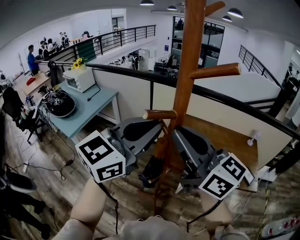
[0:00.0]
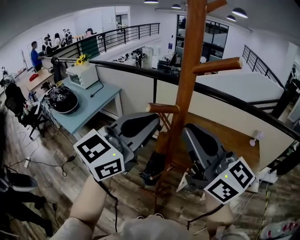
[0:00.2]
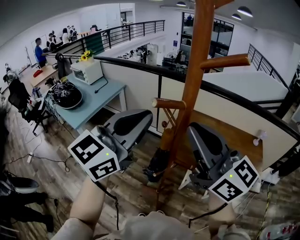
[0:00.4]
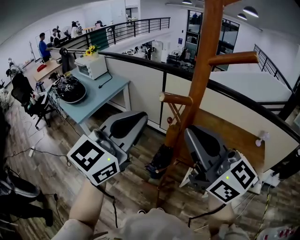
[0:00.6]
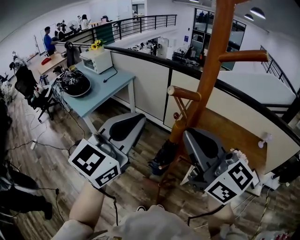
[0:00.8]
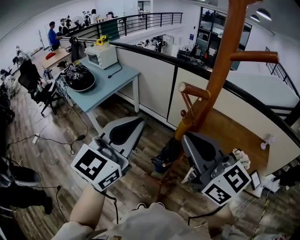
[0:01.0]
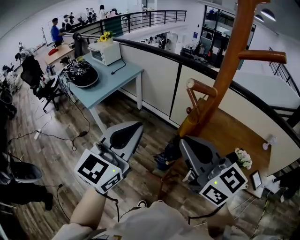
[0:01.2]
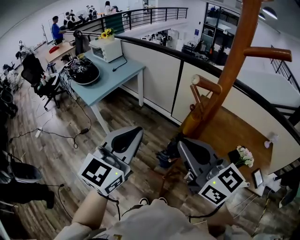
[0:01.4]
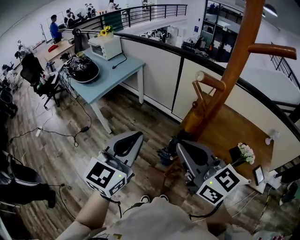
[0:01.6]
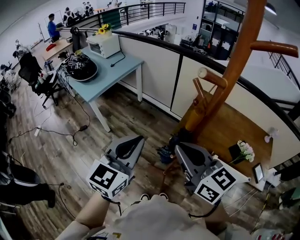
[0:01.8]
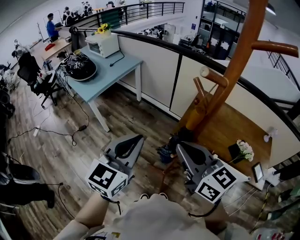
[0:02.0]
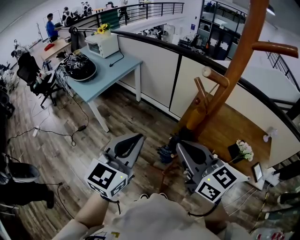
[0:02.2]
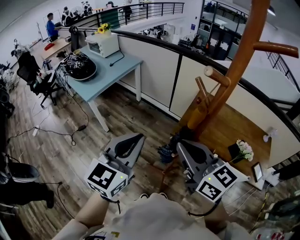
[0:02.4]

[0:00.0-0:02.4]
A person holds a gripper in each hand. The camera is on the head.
0.0 to 1.2 s: The left gripper travels to the left and downward by about 15 cm, and swivels roughly 30 degrees, while the right gripper travels downward and to the left by some 10 cm.
1.2 to 2.4 s: Both grippers travel together downward, some 10 cm.

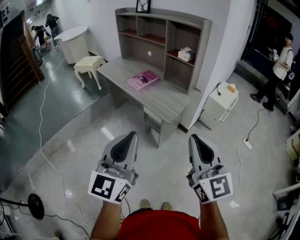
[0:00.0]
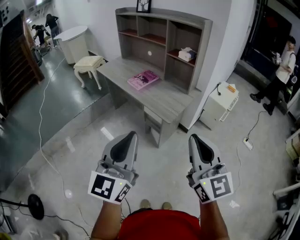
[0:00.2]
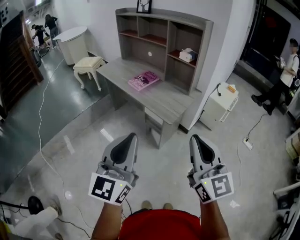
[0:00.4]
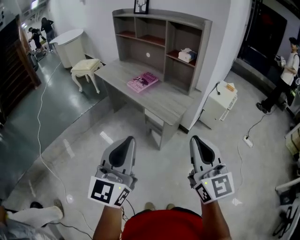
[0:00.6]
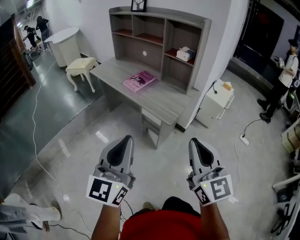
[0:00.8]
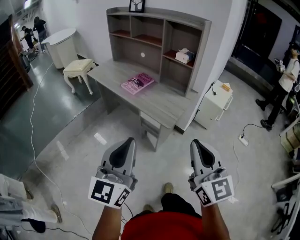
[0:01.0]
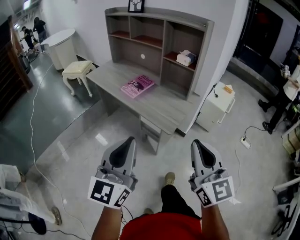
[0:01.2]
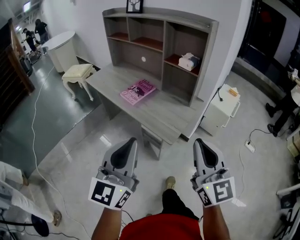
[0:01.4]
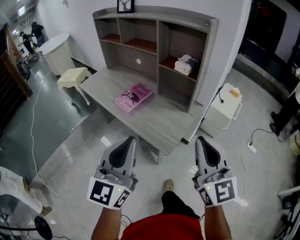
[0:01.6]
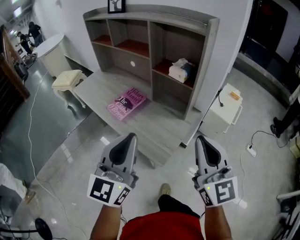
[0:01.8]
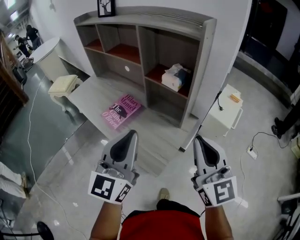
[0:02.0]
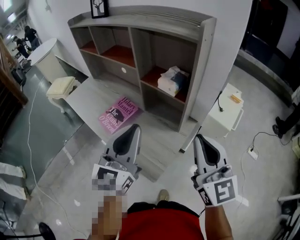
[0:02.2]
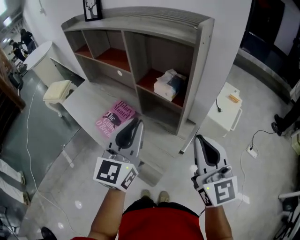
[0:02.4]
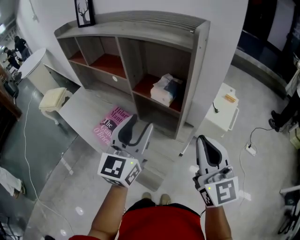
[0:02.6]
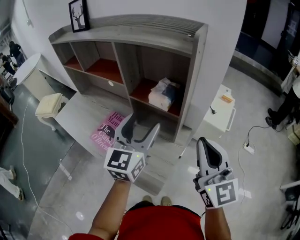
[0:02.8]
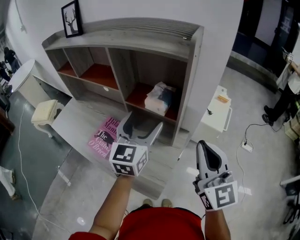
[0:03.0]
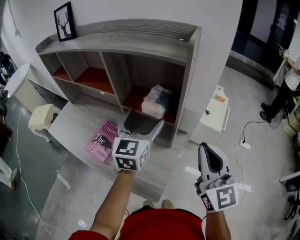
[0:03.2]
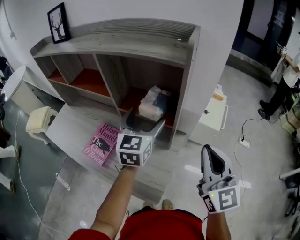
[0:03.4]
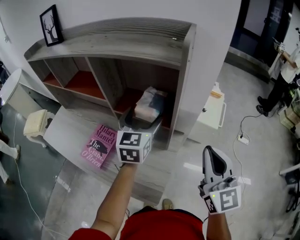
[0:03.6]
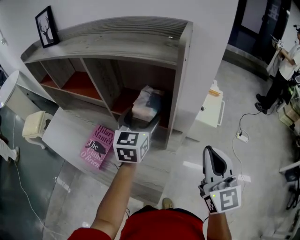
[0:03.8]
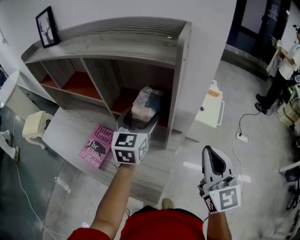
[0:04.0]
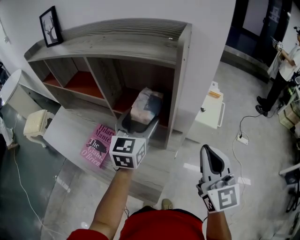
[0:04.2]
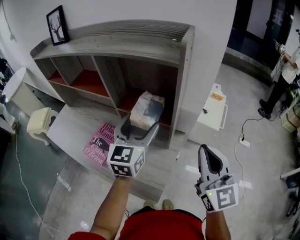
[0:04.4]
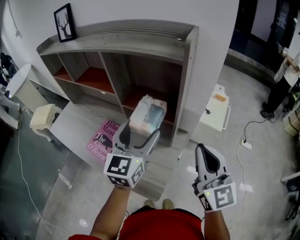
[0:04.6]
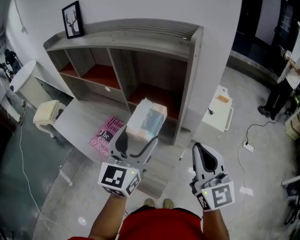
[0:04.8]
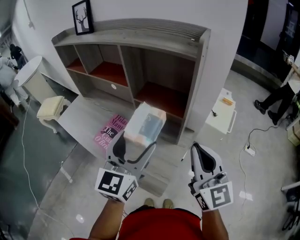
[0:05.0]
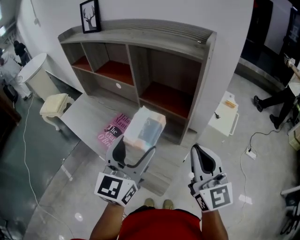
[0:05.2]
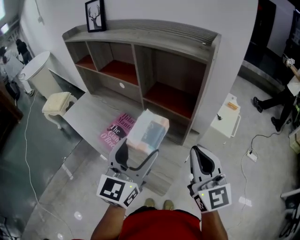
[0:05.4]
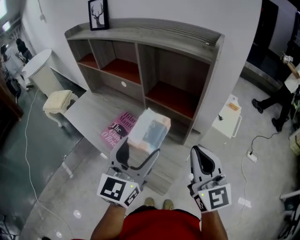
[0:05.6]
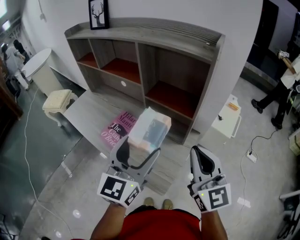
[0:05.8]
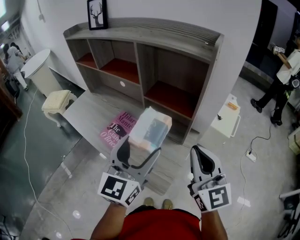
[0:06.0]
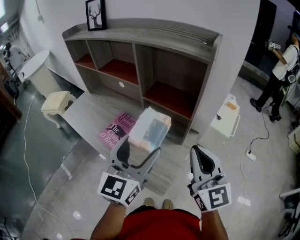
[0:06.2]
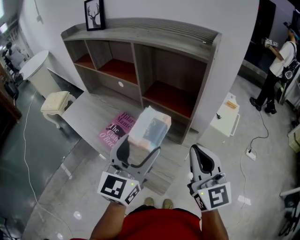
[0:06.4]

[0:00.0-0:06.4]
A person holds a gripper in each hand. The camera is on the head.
0.0 to 1.6 s: Both grippers move forward, about 25 cm.
1.6 to 3.2 s: The right gripper goes roughly 25 cm forward. Meanwhile the left gripper shifts roughly 40 cm forward, and opens.
3.2 to 4.8 s: The left gripper heads backward, covering approximately 10 cm.
4.8 to 6.4 s: The left gripper is displaced backward by about 5 cm, while the right gripper is displaced to the left by approximately 5 cm.

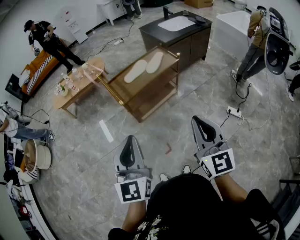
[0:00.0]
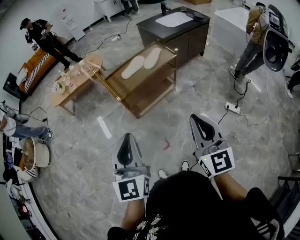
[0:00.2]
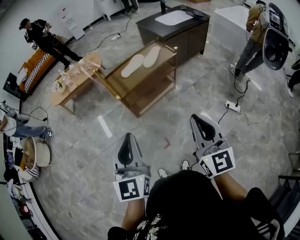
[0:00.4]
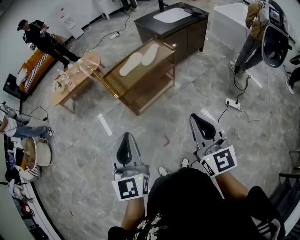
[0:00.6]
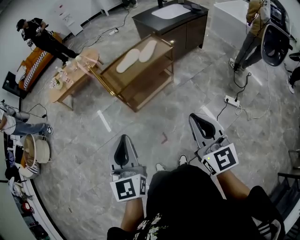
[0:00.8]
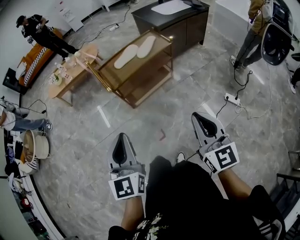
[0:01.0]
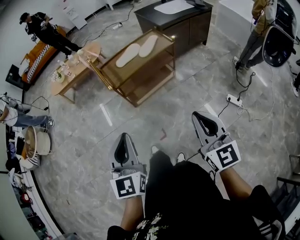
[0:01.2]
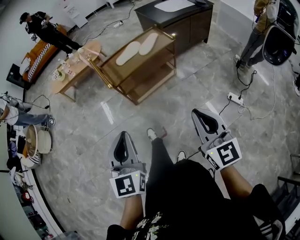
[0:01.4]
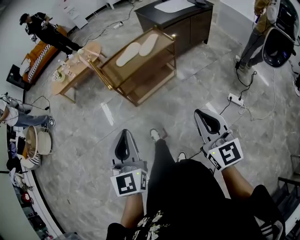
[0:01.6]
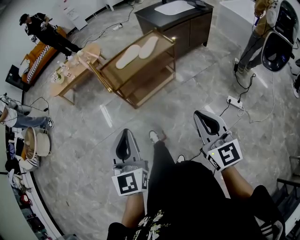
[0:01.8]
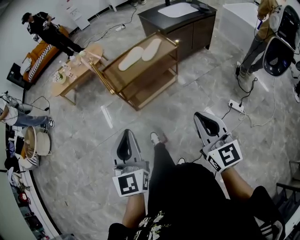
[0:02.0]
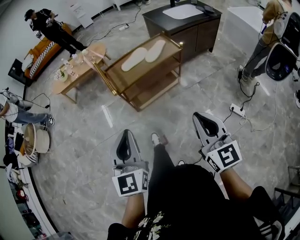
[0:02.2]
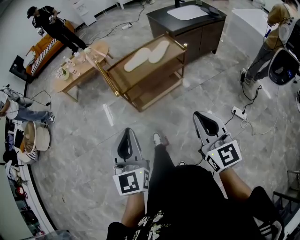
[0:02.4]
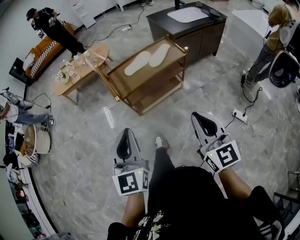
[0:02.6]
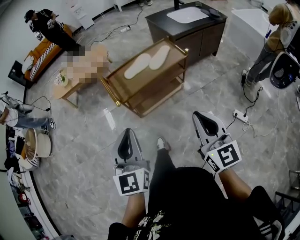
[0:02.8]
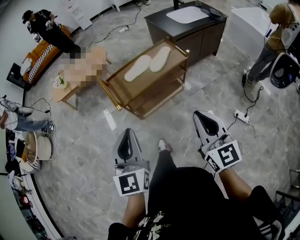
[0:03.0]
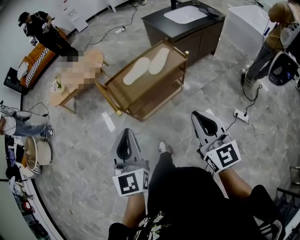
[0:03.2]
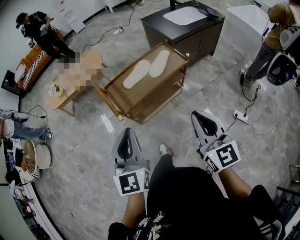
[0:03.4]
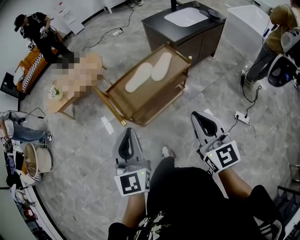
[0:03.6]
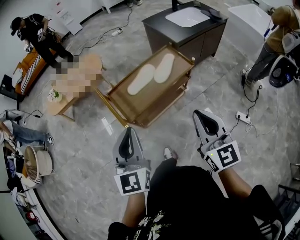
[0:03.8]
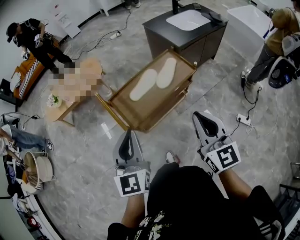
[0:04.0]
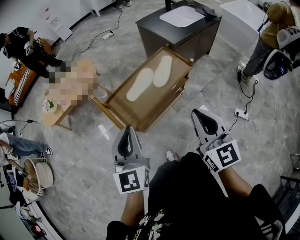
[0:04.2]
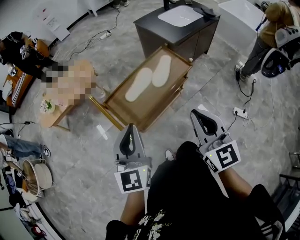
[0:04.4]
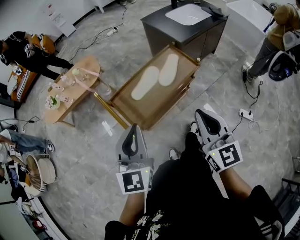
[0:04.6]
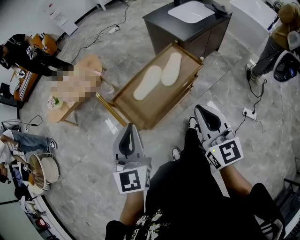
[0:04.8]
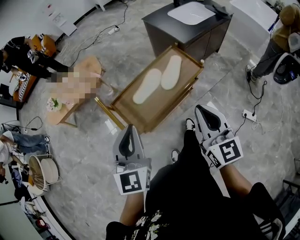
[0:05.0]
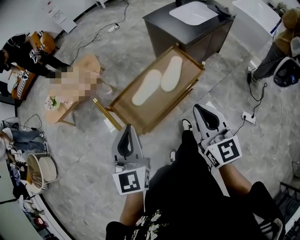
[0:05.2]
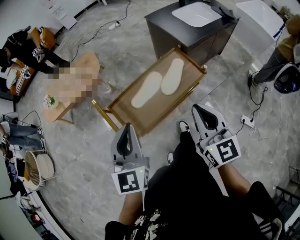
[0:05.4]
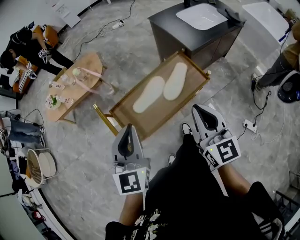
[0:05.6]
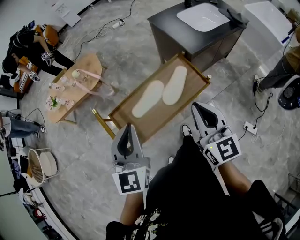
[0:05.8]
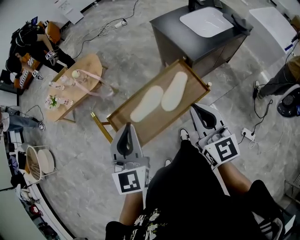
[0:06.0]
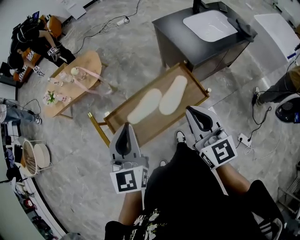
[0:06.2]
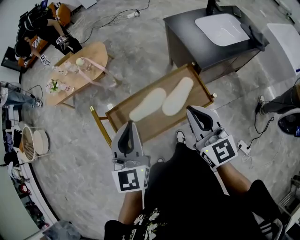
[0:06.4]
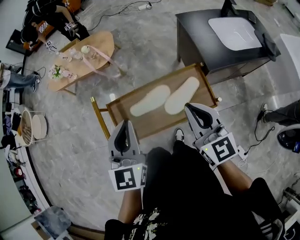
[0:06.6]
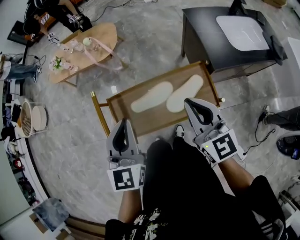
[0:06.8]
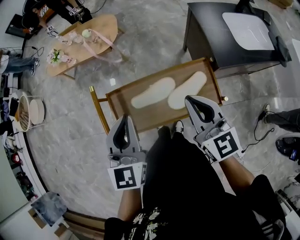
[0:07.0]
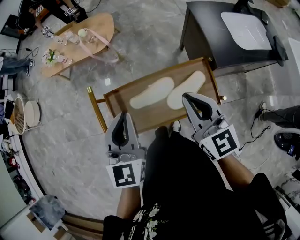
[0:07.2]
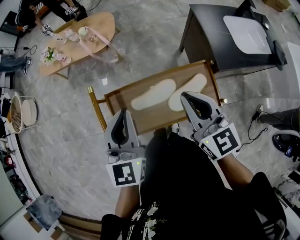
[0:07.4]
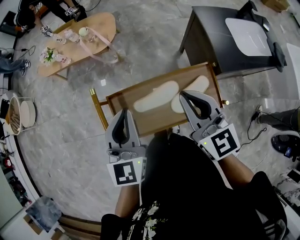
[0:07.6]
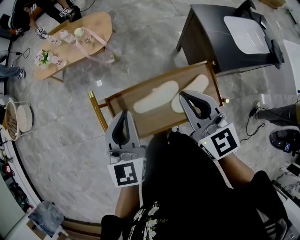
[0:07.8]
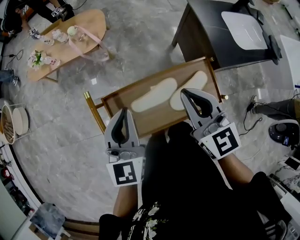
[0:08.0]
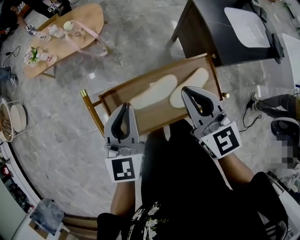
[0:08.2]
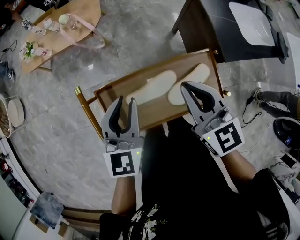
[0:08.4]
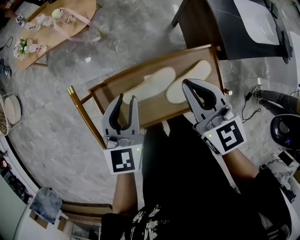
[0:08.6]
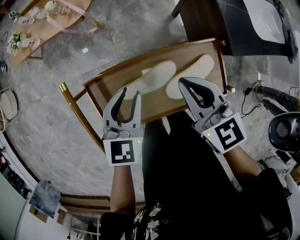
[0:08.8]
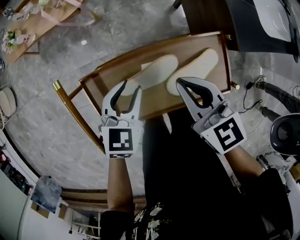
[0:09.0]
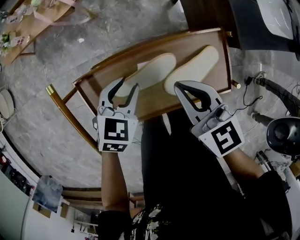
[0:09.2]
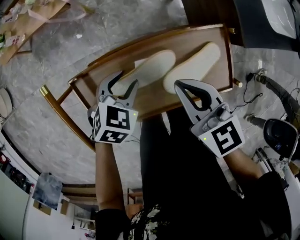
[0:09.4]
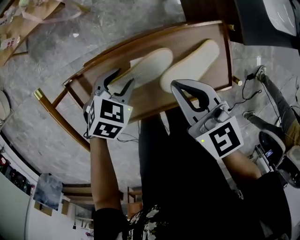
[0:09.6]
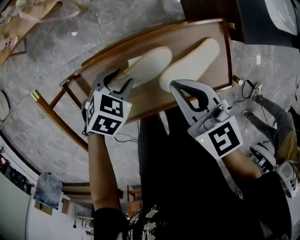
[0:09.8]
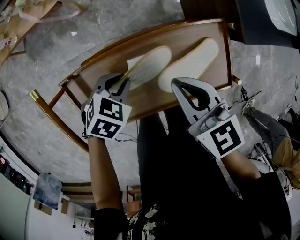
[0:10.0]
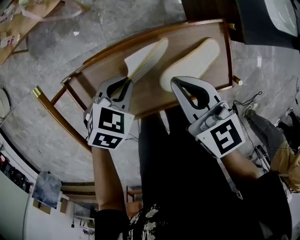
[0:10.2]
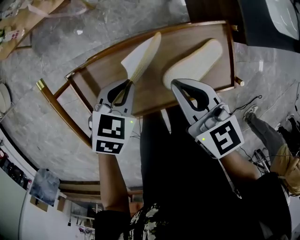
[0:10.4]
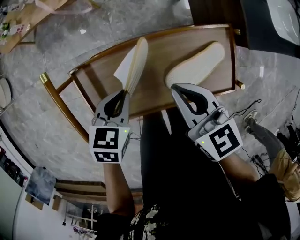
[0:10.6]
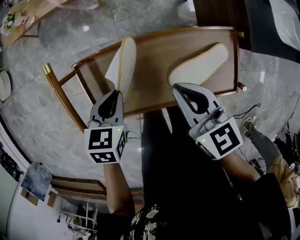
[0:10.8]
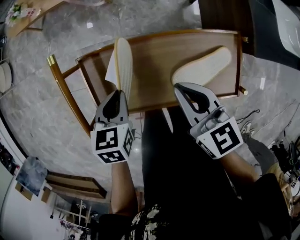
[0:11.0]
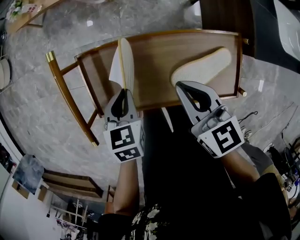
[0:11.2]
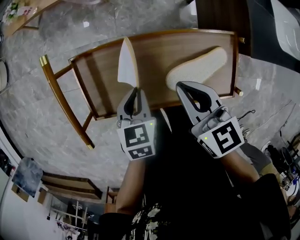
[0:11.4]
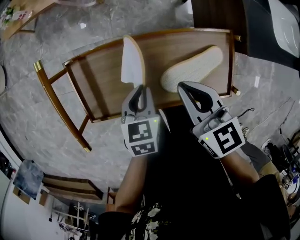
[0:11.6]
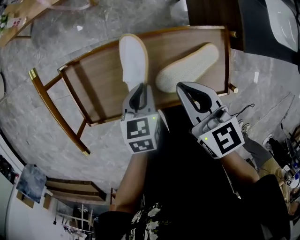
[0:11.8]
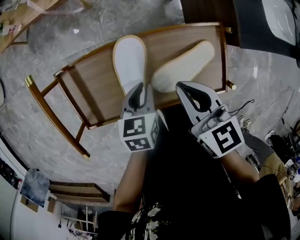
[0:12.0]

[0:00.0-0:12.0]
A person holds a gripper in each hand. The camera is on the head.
0.0 to 1.6 s: The left gripper shifts some 10 cm downward and to the right, while the right gripper heads to the right and downward, covering approximately 10 cm.
1.6 to 3.0 s: The two grippers go roughly 15 cm forward.
3.0 to 4.4 s: The right gripper is displaced forward and to the left by approximately 20 cm. Meanwhile the left gripper travels forward by some 20 cm.
4.4 to 6.0 s: The two grippers go roughly 20 cm forward.
6.0 to 7.6 s: The left gripper goes some 10 cm forward; the right gripper travels forward and to the left by roughly 15 cm, and rotates some 30 degrees.
7.6 to 9.0 s: Both grippers travel together downward, roughly 20 cm. The left gripper points its fingers approximately 30 degrees further downward, and opens its fingers. Meanwhile the right gripper changes its angle by roughly 20 degrees.
9.0 to 10.4 s: The right gripper ends up some 5 cm from where it was. The left gripper heads downward, covering approximately 5 cm, and closes its fingers.
10.4 to 12.0 s: The left gripper ends up about 10 cm from where it was, and turns by some 40 degrees.

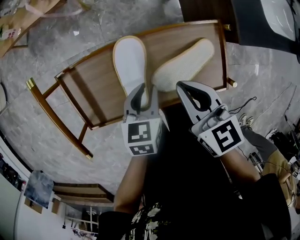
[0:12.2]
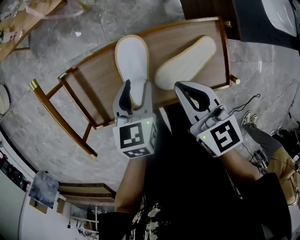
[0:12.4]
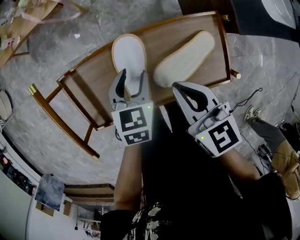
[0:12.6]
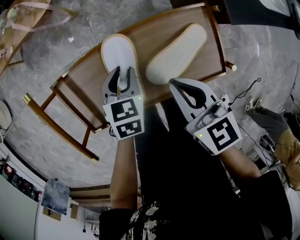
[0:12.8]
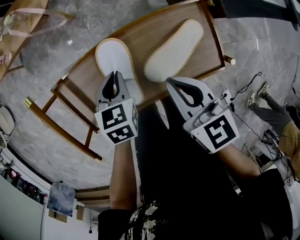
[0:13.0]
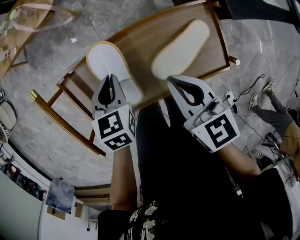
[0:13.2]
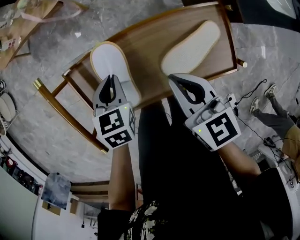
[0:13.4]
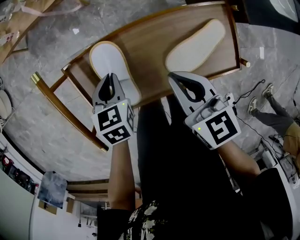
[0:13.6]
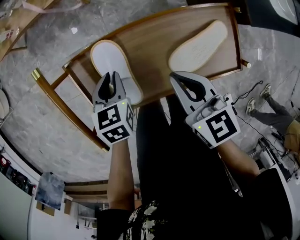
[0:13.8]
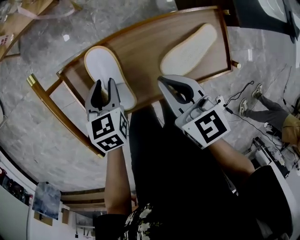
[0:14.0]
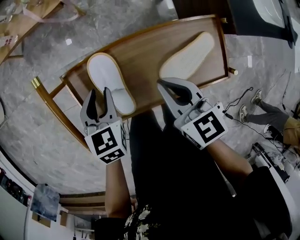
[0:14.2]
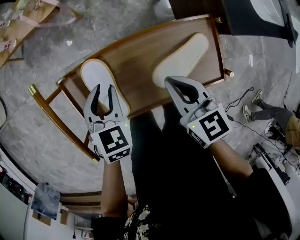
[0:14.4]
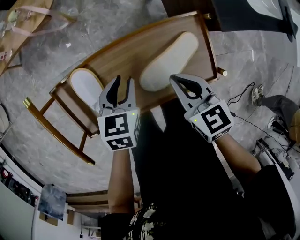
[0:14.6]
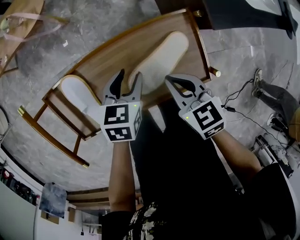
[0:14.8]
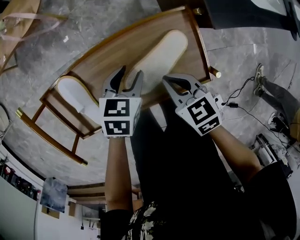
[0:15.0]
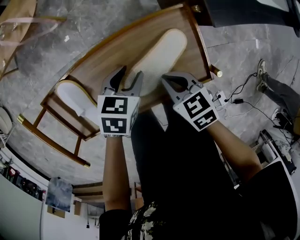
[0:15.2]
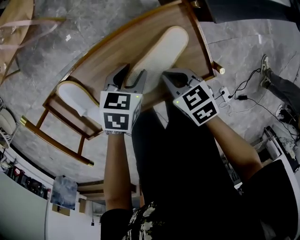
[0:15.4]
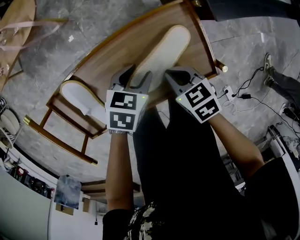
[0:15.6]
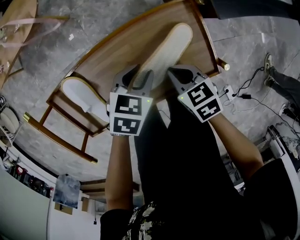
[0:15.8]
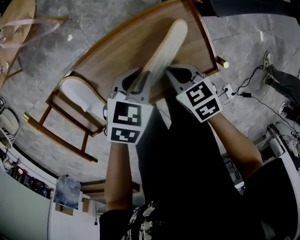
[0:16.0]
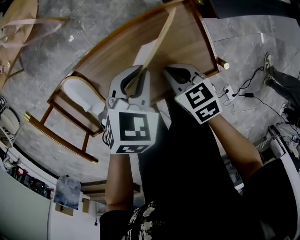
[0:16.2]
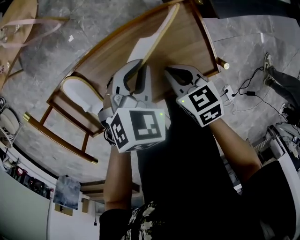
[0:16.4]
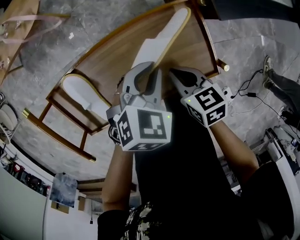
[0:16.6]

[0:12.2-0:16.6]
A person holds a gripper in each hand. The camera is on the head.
12.2 to 13.6 s: The right gripper moves to the left, about 5 cm, while the left gripper goes some 15 cm to the left, and opens, then closes once more.
13.6 to 15.2 s: The left gripper heads to the right, covering roughly 25 cm, rotates some 30 degrees, and opens, while the right gripper goes roughly 20 cm to the right and downward, and swivels roughly 20 degrees.
15.2 to 16.6 s: The left gripper is displaced upward by about 10 cm, turns by some 30 degrees, and closes.
